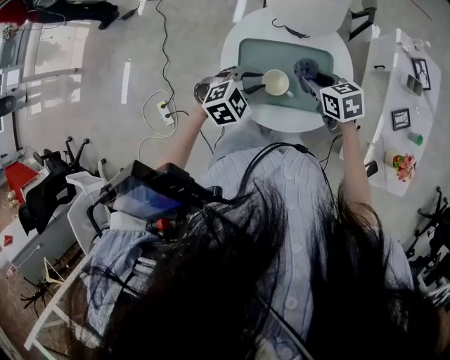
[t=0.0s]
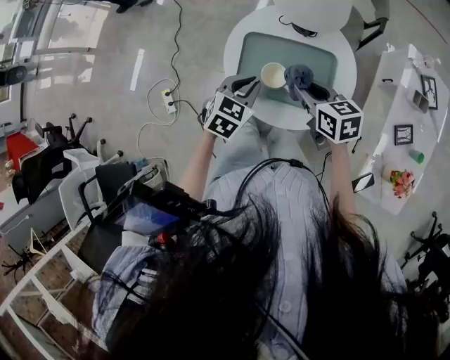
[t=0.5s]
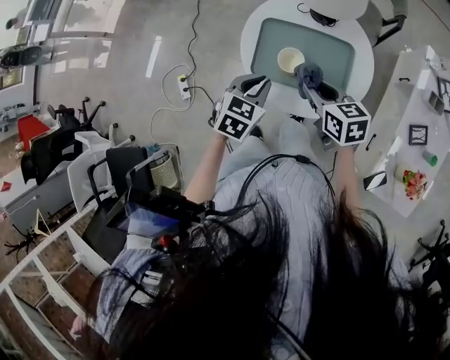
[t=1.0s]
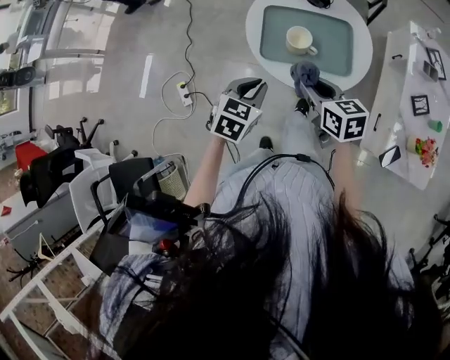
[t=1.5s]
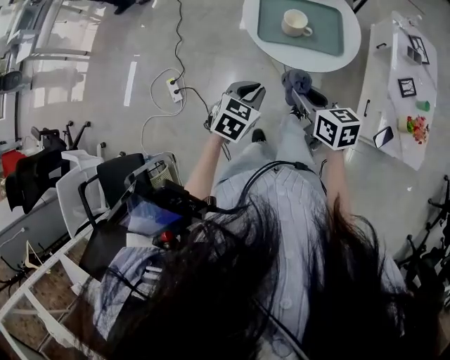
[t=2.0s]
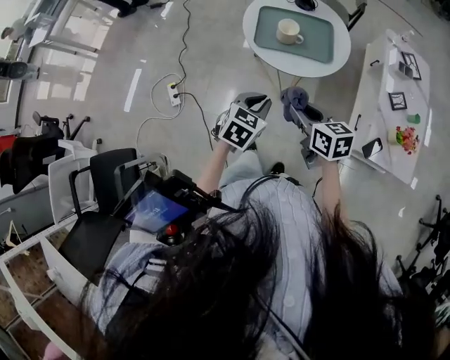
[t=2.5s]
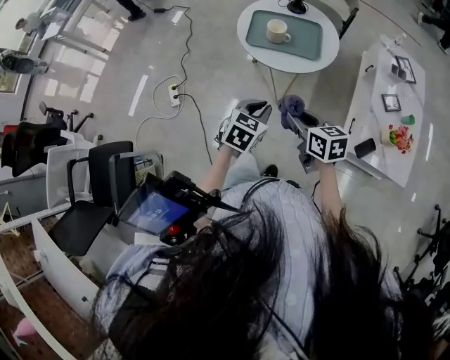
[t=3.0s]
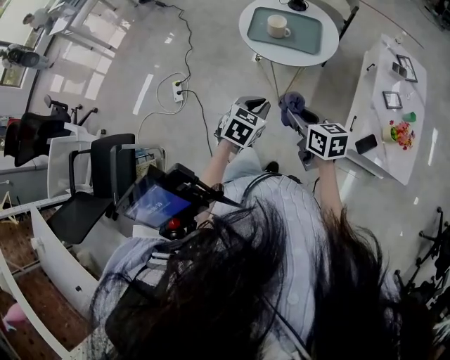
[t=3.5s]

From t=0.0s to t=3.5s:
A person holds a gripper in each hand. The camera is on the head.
From t=0.0s to t=2.0s: The left gripper heads backward, covering roughly 25 cm, and rotates about 40 degrees. The right gripper goes some 30 cm backward and to the left.
From t=2.0s to t=3.5s: The two grippers go approximately 20 cm backward and to the right.

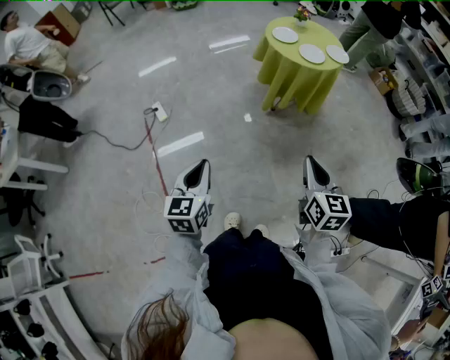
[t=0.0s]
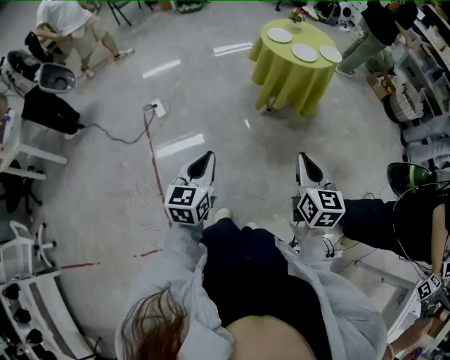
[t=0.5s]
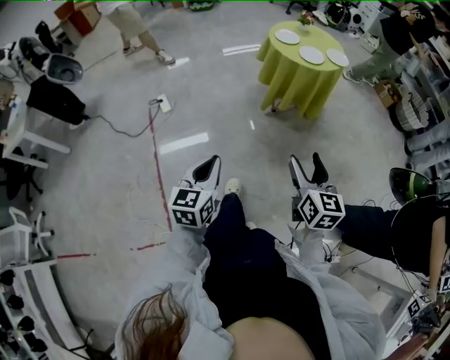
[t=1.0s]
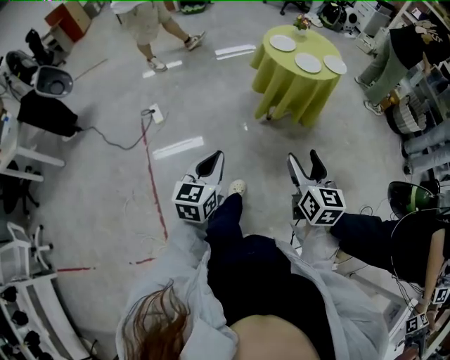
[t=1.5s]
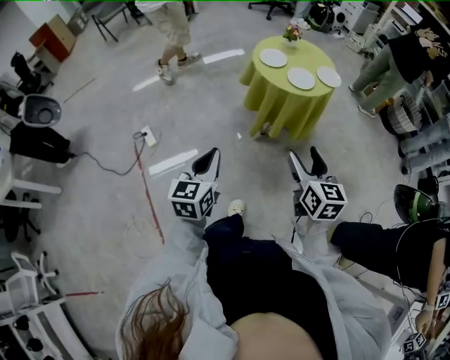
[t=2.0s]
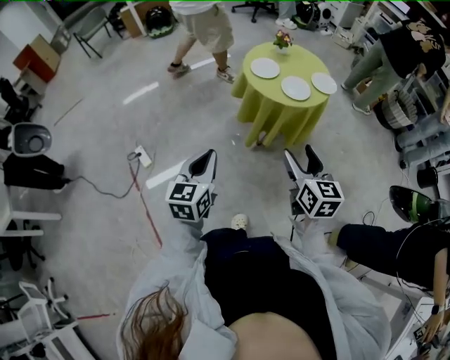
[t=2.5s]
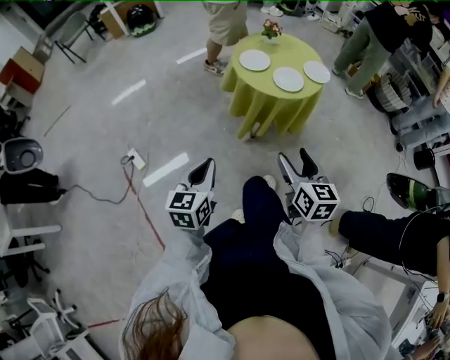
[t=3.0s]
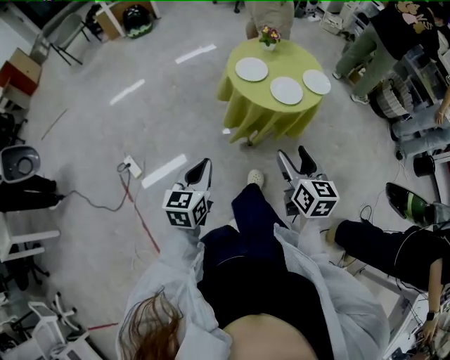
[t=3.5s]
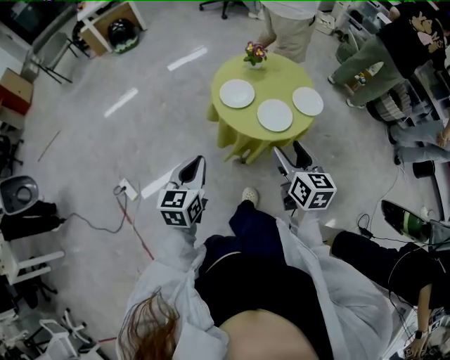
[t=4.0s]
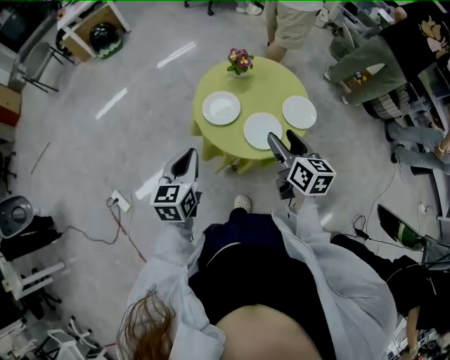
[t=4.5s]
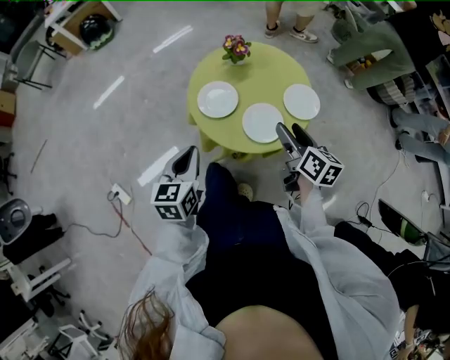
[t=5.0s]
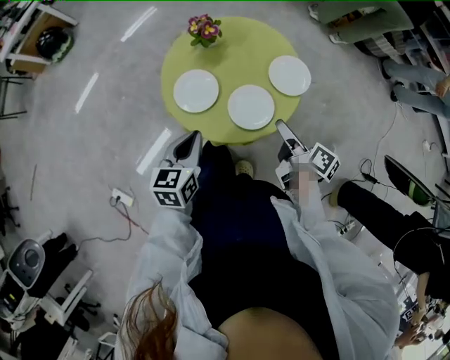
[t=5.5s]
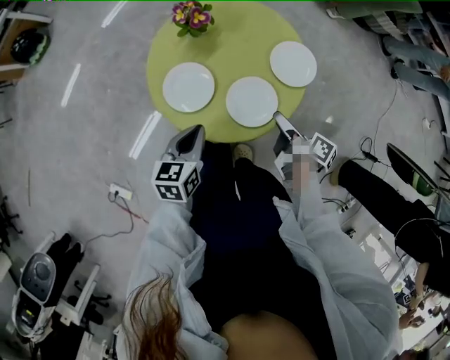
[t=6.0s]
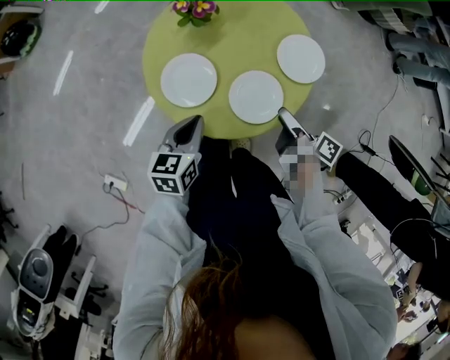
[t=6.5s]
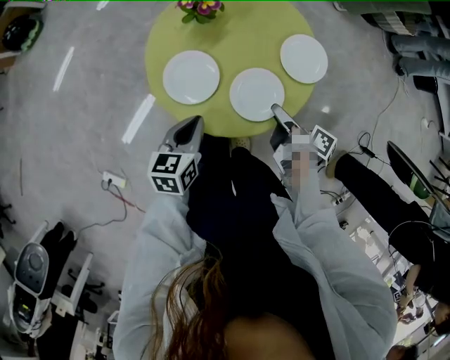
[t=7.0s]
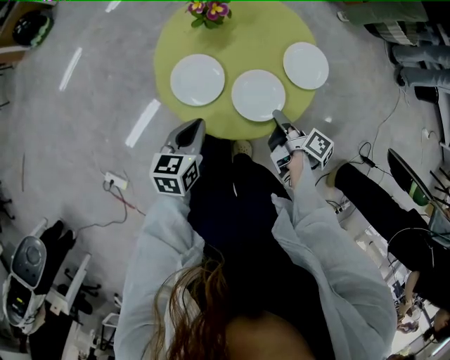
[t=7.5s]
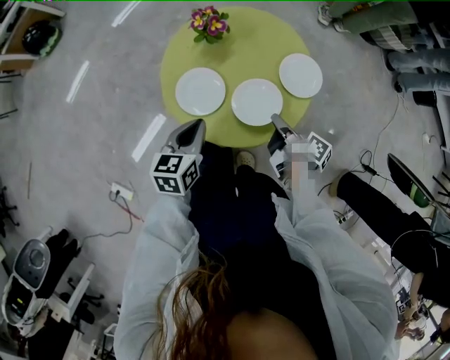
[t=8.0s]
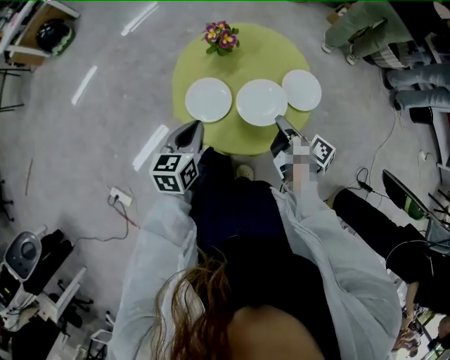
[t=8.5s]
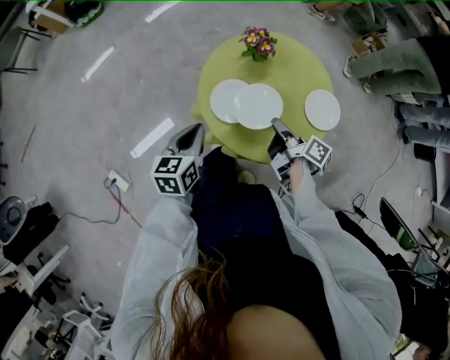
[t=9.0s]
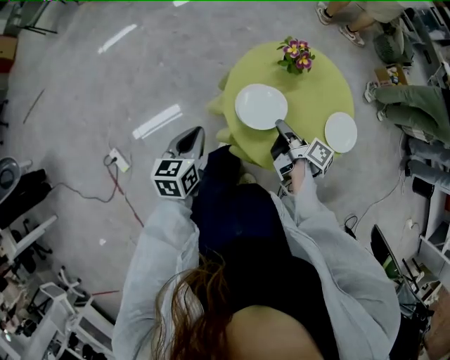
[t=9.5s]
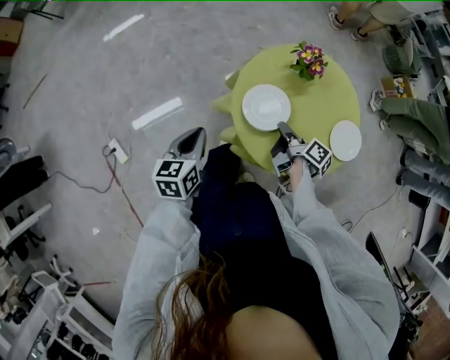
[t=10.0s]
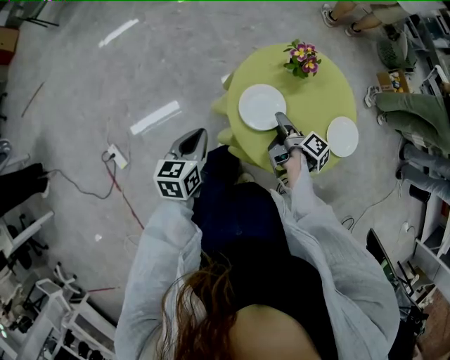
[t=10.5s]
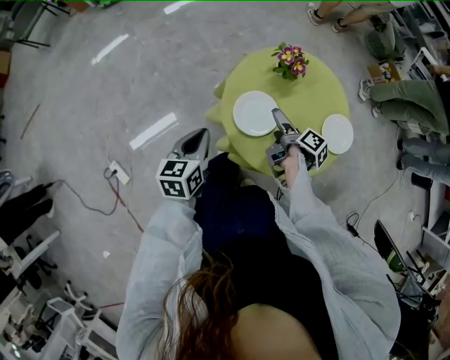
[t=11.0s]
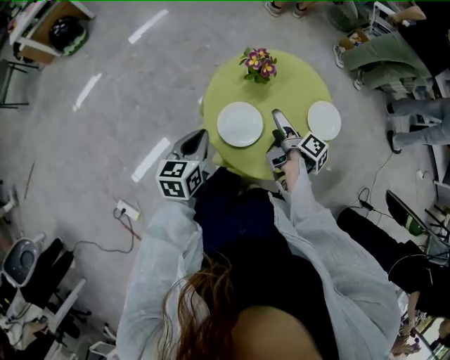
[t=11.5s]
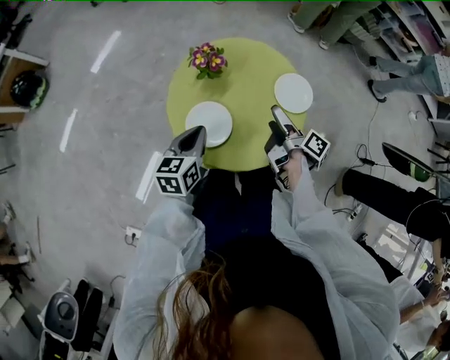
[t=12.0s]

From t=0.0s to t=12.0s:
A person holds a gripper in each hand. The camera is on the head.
From t=0.0s to t=2.0s: The right gripper is displaced forward by roughly 15 cm, and opens up; the left gripper heads forward and to the right, covering approximately 20 cm.
From t=2.0s to t=4.0s: The grippers both shift forward by roughly 30 cm.
From t=4.0s to t=6.0s: The left gripper goes roughly 25 cm forward, downward and to the right, and turns by roughly 30 degrees. The right gripper shifts roughly 25 cm downward, forward and to the right, and twists approximately 70 degrees clockwise, seen from behind.
From t=6.0s to t=8.0s: The right gripper closes.
From t=8.0s to t=10.0s: The left gripper goes roughly 15 cm to the left, and rotates approximately 30 degrees. The right gripper goes some 15 cm to the left and forward.
From t=10.0s to t=12.0s: The left gripper changes place by roughly 20 cm, and changes its angle by about 40 degrees. Meanwhile the right gripper ends up about 15 cm from where it was, swivels about 40 degrees, and opens.

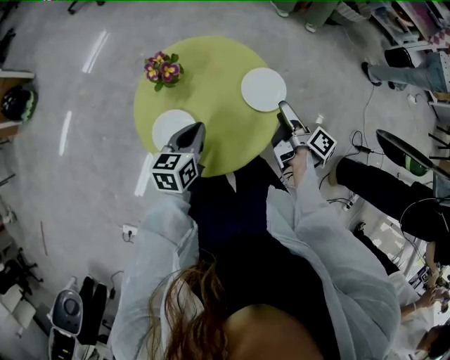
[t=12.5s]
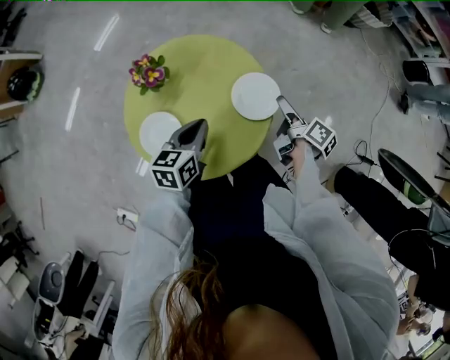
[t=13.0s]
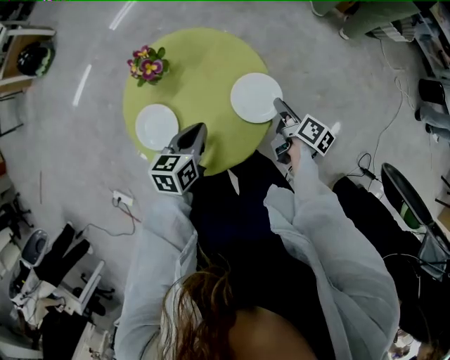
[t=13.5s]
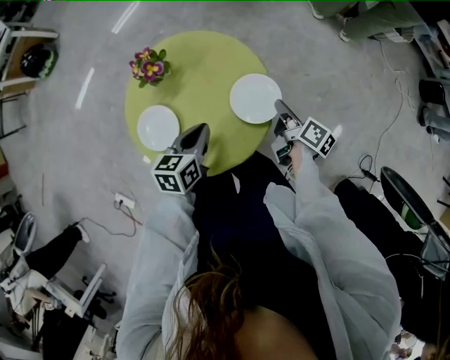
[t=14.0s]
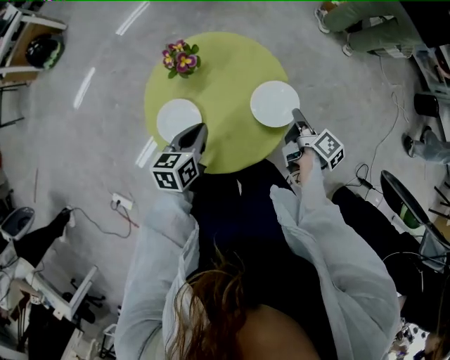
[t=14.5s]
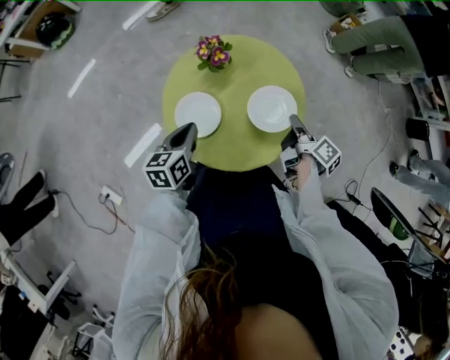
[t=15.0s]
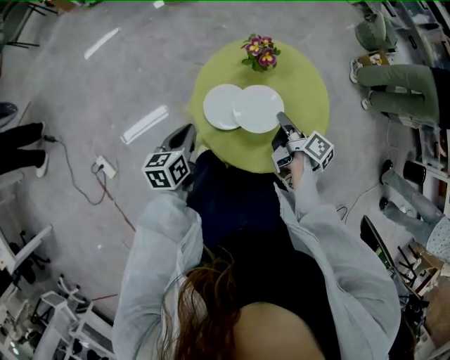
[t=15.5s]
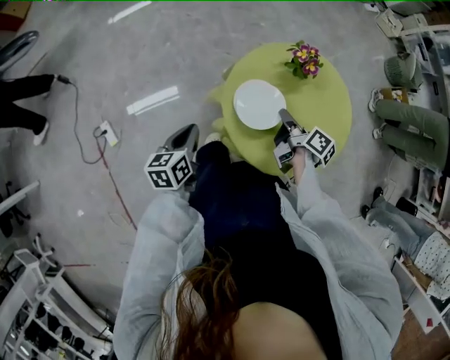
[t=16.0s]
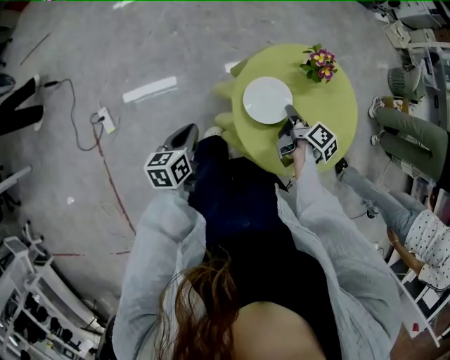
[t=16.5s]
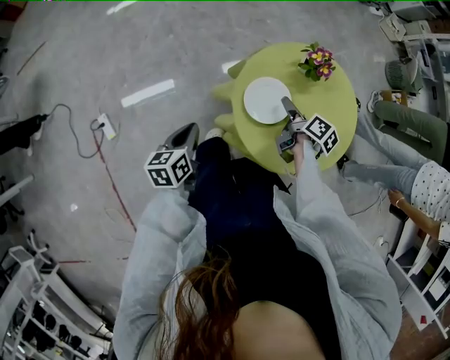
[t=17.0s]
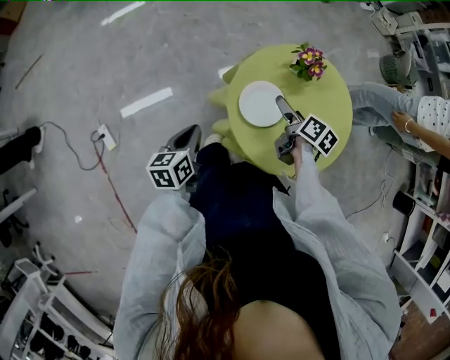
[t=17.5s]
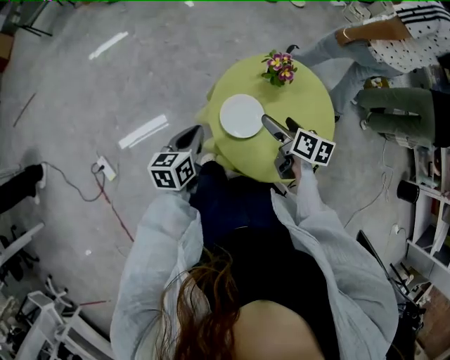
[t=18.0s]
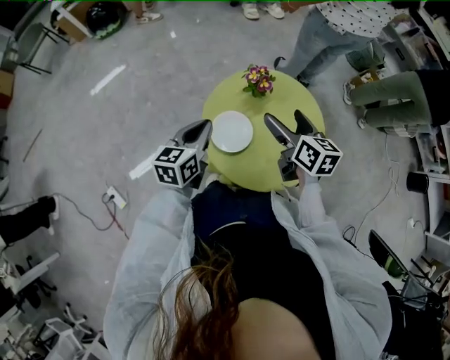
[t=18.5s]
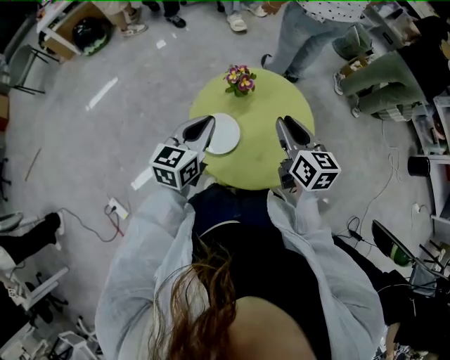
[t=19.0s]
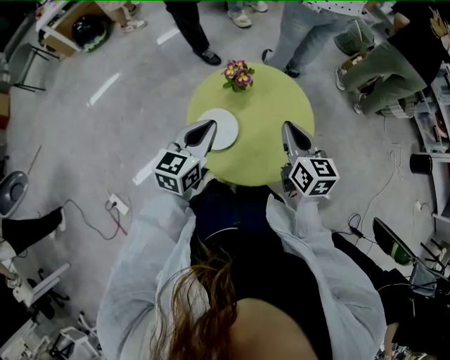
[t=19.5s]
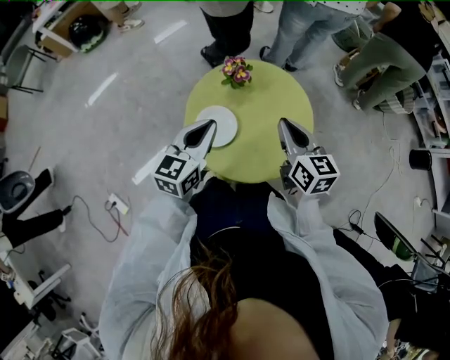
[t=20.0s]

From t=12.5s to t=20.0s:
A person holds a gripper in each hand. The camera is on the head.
From t=12.5s to t=14.5s: The right gripper shifts approximately 5 cm forward, and closes.
From t=14.5s to t=16.5s: The left gripper changes place by some 30 cm, and turns by roughly 40 degrees. The right gripper changes place by about 30 cm, and turns by approximately 40 degrees.
From t=16.5s to t=18.0s: The left gripper travels forward and to the right by about 10 cm; the right gripper moves upward, roughly 5 cm, rotates approximately 30 degrees, and opens up.
From t=18.0s to t=20.0s: The right gripper goes about 15 cm upward and to the right, swivels approximately 30 degrees, and closes up, while the left gripper travels to the right and upward by roughly 15 cm, and rotates roughly 30 degrees.

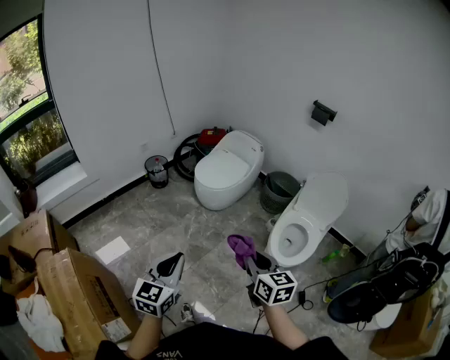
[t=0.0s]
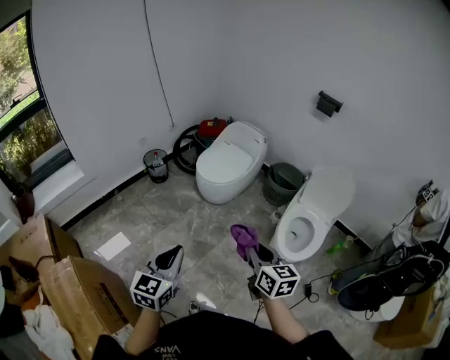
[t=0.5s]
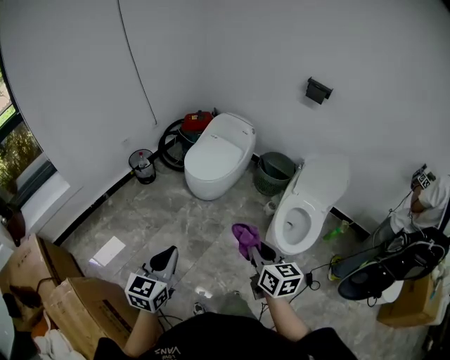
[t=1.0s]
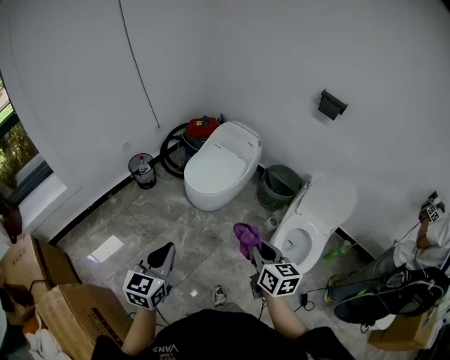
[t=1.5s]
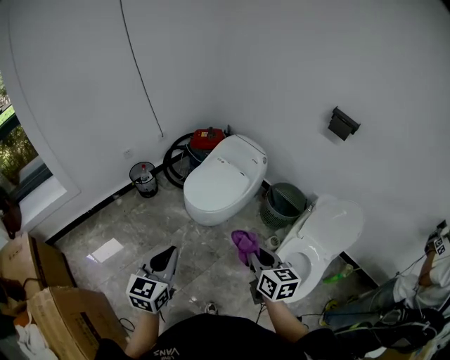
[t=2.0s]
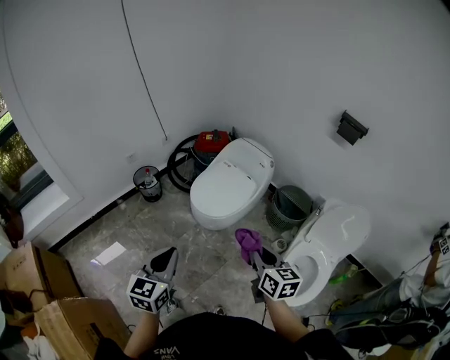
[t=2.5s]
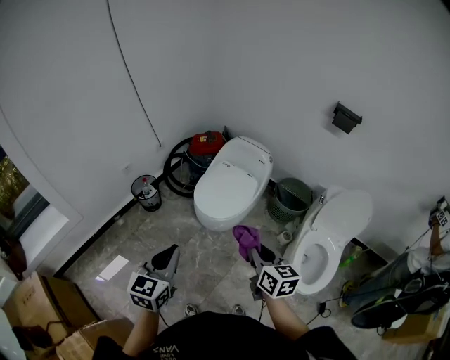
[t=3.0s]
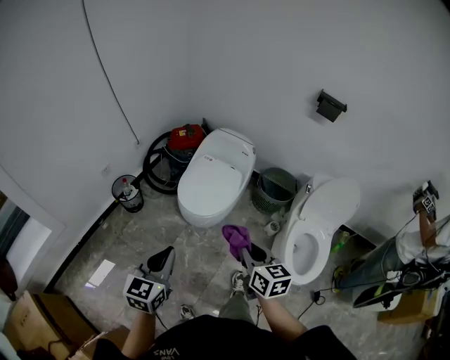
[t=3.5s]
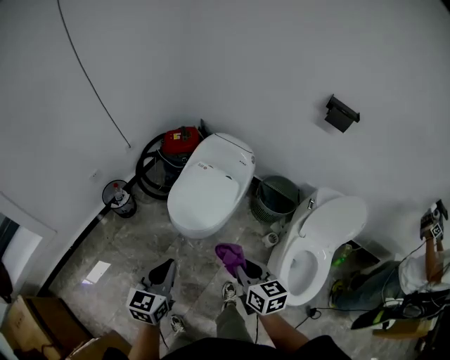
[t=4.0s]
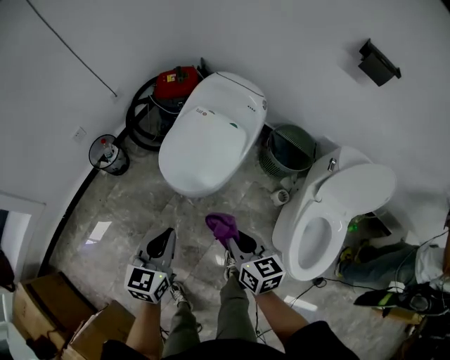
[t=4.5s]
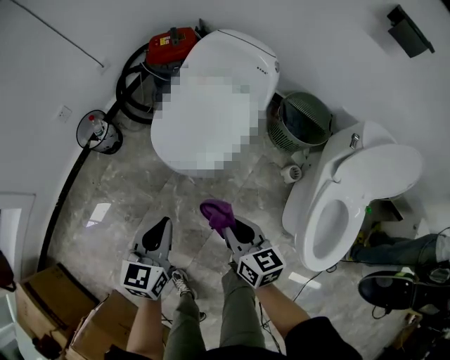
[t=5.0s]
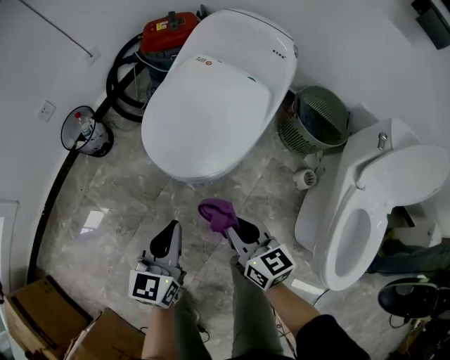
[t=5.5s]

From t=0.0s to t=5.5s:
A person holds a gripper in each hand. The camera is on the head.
From t=0.0s to t=2.0s: Both grippers travel together forward, some 30 cm.
From t=2.0s to t=3.5s: The right gripper shifts approximately 15 cm to the left; the left gripper goes about 20 cm to the left and forward.
From t=3.5s to t=5.5s: Both grippers move downward and forward, approximately 40 cm.
